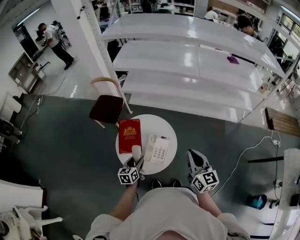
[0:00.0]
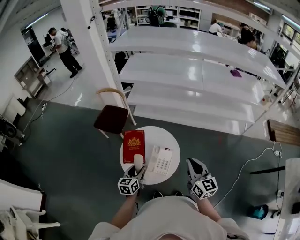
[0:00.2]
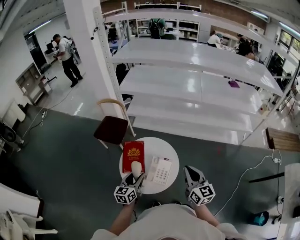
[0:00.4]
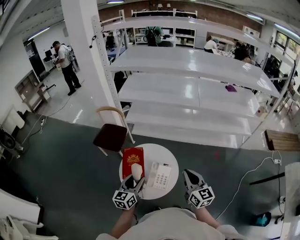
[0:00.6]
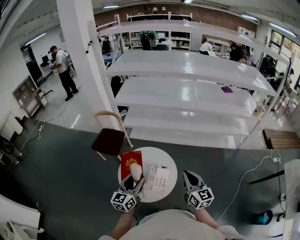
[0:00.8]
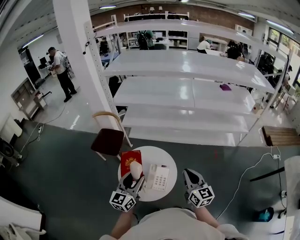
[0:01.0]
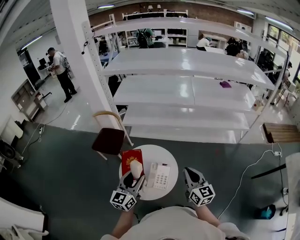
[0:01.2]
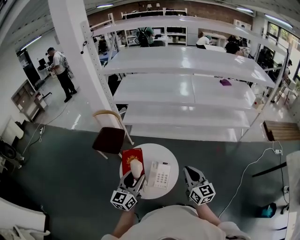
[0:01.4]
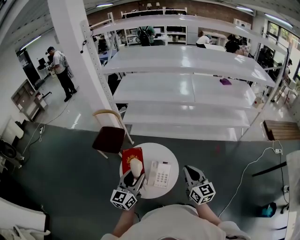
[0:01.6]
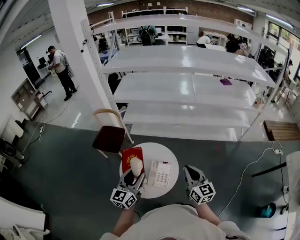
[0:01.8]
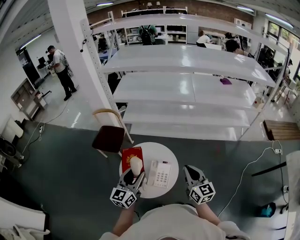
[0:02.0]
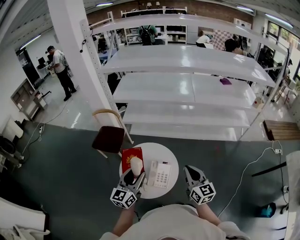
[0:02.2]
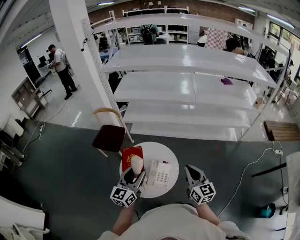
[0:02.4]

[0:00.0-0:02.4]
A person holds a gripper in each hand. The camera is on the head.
0:00.0 to 0:01.2: The left gripper shifts about 25 cm upward, and angles its fingers upward, by approximately 30 degrees.
0:01.2 to 0:02.4: The grippers move only a little.

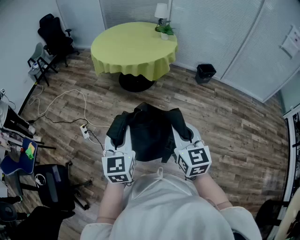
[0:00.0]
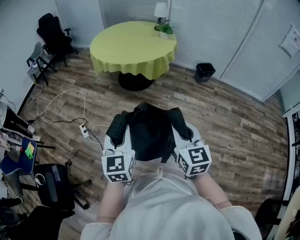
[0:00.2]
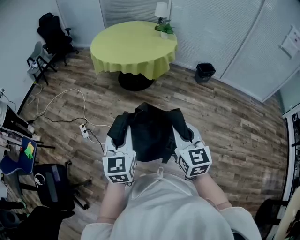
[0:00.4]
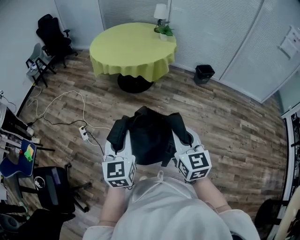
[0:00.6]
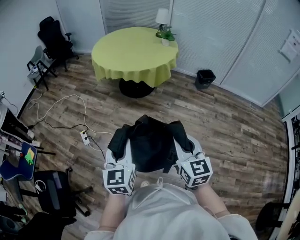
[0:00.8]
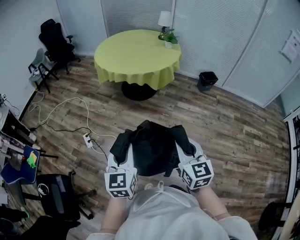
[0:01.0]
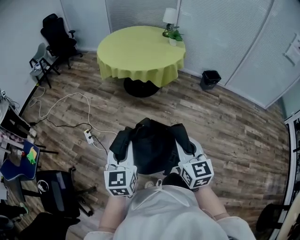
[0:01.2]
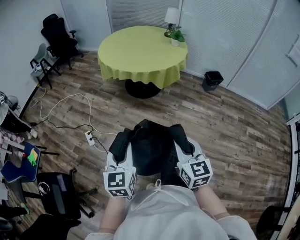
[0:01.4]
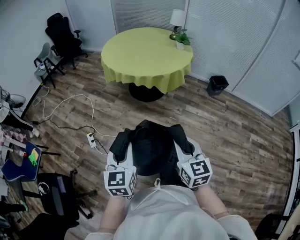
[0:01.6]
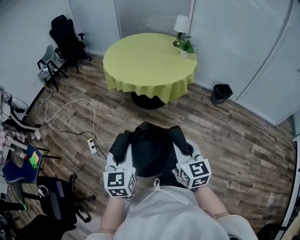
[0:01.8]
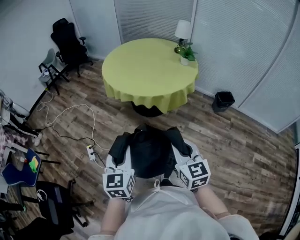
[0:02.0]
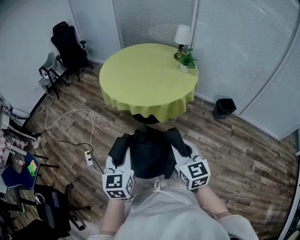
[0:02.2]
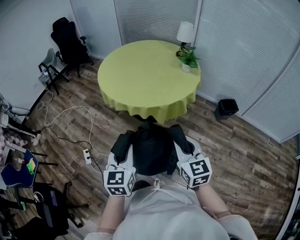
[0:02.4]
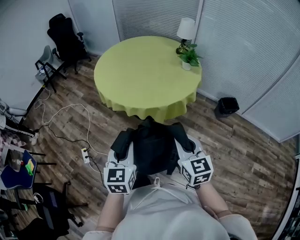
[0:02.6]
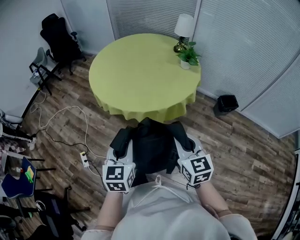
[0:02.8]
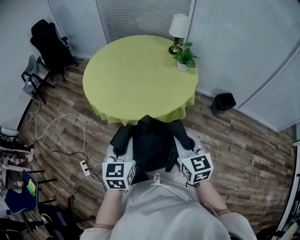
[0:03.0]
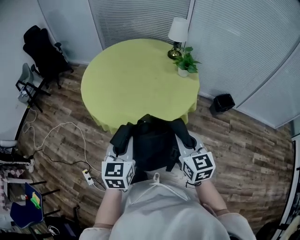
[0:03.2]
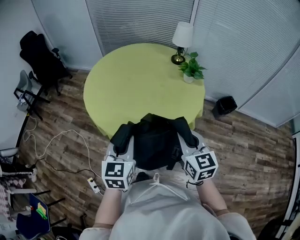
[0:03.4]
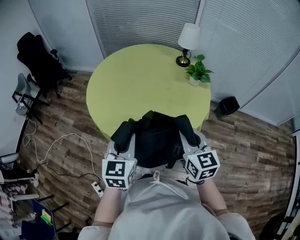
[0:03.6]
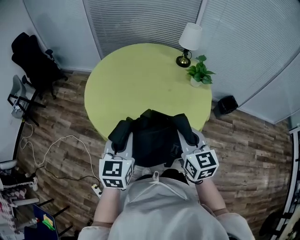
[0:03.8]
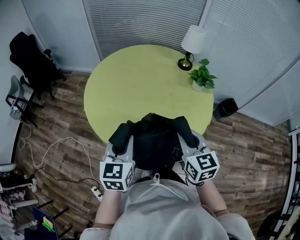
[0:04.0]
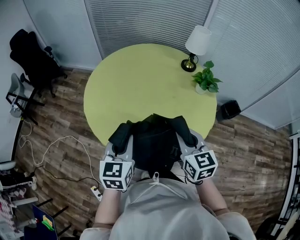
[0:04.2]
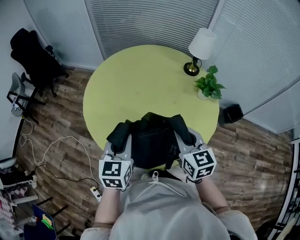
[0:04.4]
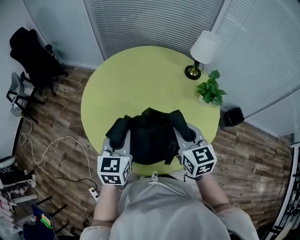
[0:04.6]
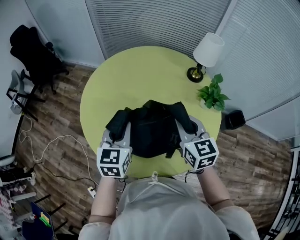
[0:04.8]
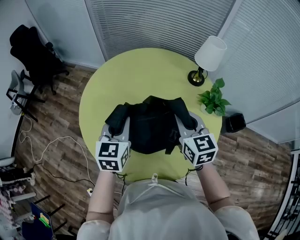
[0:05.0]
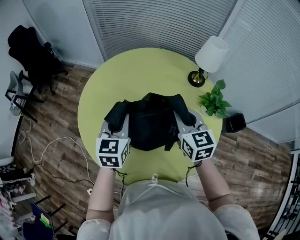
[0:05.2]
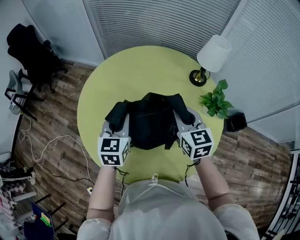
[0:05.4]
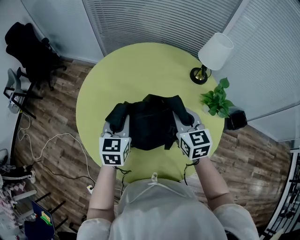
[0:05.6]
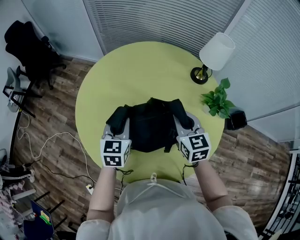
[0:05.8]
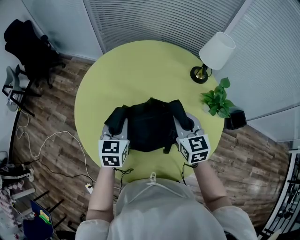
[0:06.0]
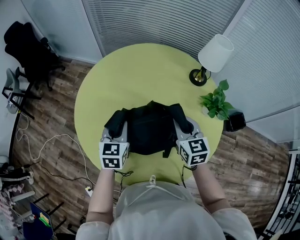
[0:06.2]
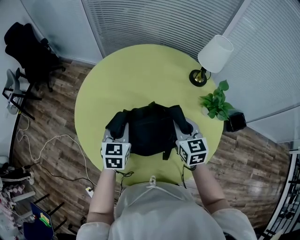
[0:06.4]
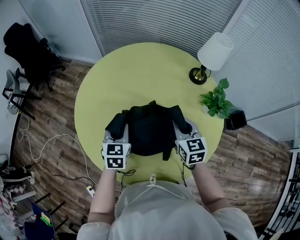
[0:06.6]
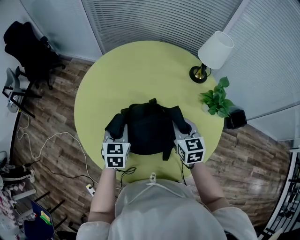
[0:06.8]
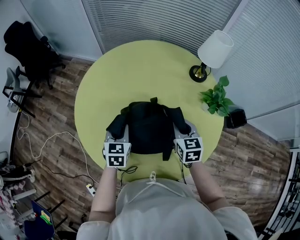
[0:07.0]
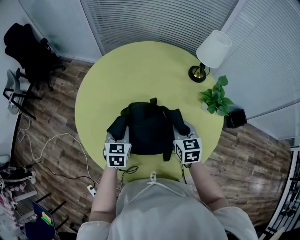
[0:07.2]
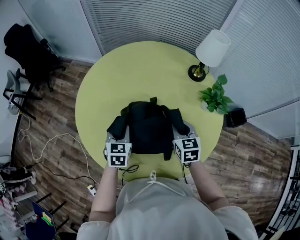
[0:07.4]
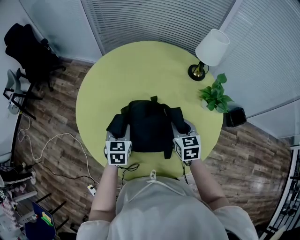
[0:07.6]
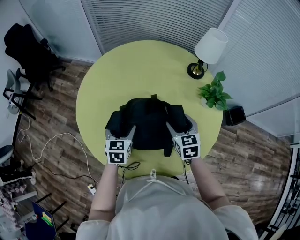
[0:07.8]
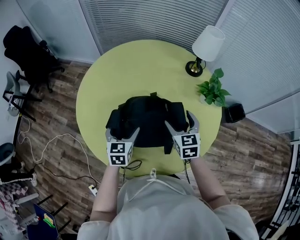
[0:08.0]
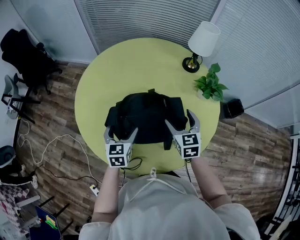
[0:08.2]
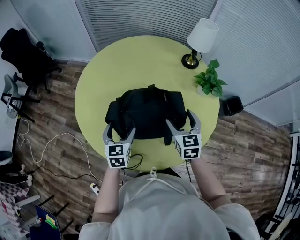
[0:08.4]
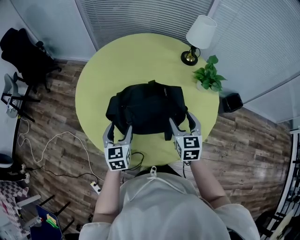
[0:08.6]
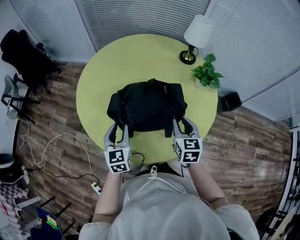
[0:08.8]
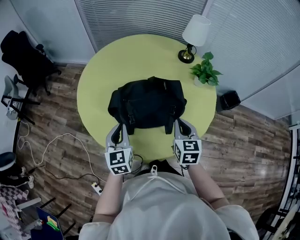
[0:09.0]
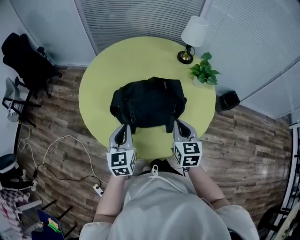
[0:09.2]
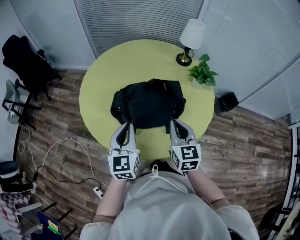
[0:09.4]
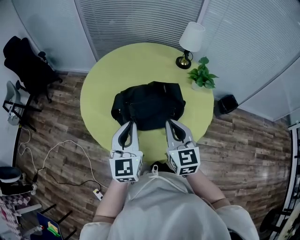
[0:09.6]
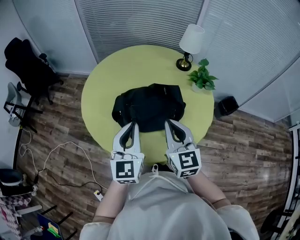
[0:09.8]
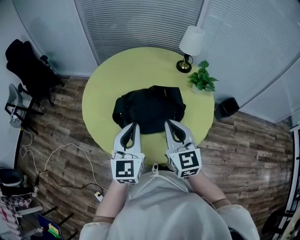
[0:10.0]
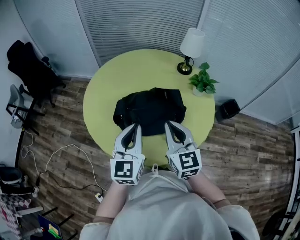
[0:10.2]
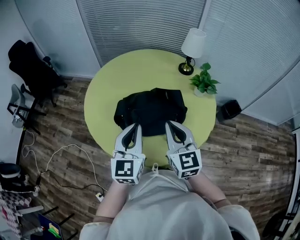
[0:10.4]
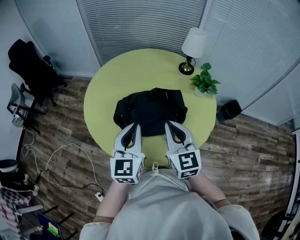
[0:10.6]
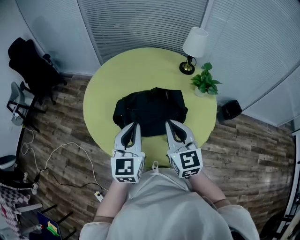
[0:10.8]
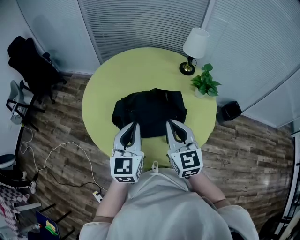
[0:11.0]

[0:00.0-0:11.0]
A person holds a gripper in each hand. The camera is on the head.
0:00.0 to 0:01.6: The two grippers go roughly 15 cm forward and to the left.
0:01.6 to 0:03.2: Both grippers are carried forward, some 50 cm.
0:03.2 to 0:04.8: The pair of grippers is taken forward, about 40 cm.
0:04.8 to 0:06.2: The left gripper goes roughly 15 cm downward and forward. Meanwhile the right gripper goes approximately 10 cm forward and downward.
0:06.2 to 0:07.8: The two grippers go roughly 5 cm downward. The left gripper opens up. Meanwhile the right gripper opens.
0:07.8 to 0:09.4: The grippers both shift backward and upward by some 20 cm. The right gripper closes up. The left gripper turns by about 20 degrees, and closes its fingers.
0:09.4 to 0:11.0: The right gripper shifts some 5 cm upward, while the left gripper ends up some 5 cm from where it was.

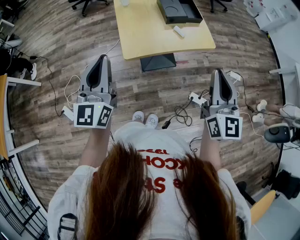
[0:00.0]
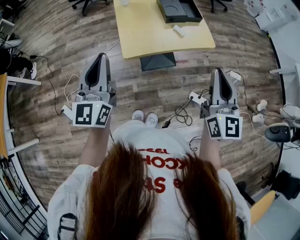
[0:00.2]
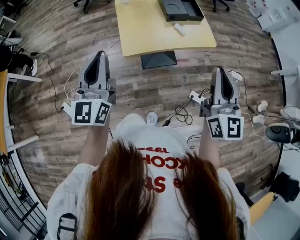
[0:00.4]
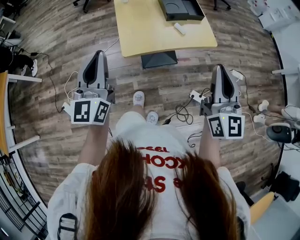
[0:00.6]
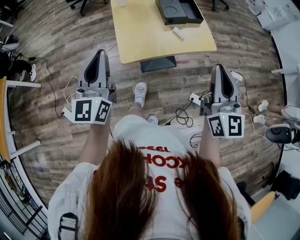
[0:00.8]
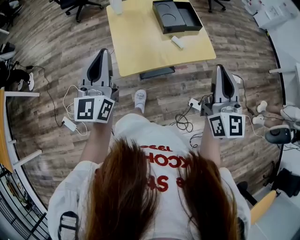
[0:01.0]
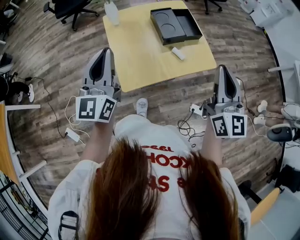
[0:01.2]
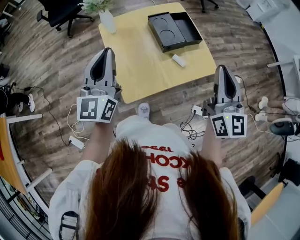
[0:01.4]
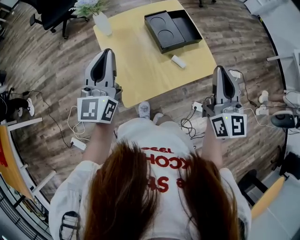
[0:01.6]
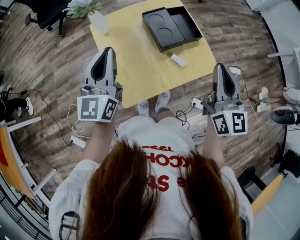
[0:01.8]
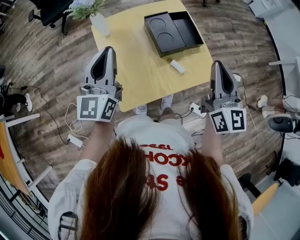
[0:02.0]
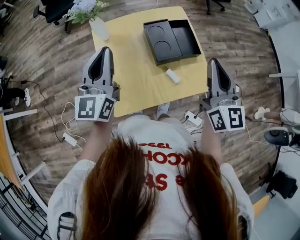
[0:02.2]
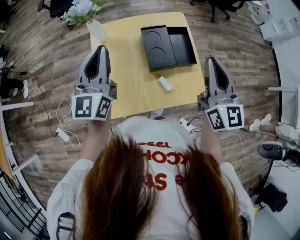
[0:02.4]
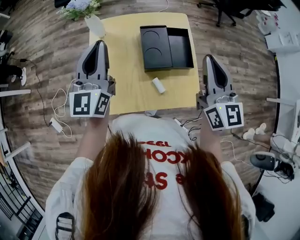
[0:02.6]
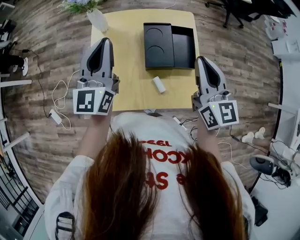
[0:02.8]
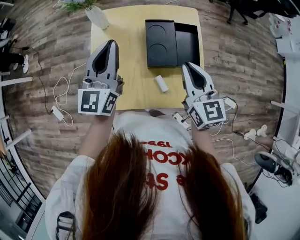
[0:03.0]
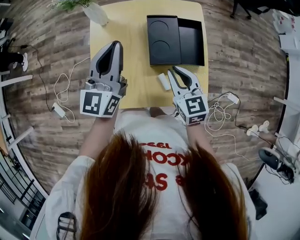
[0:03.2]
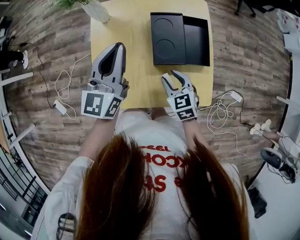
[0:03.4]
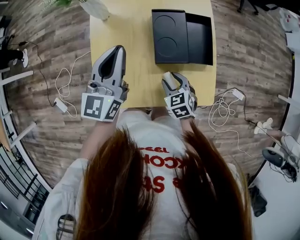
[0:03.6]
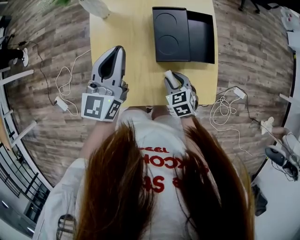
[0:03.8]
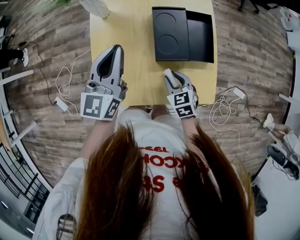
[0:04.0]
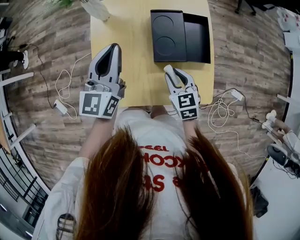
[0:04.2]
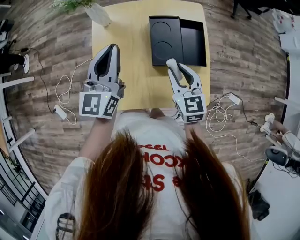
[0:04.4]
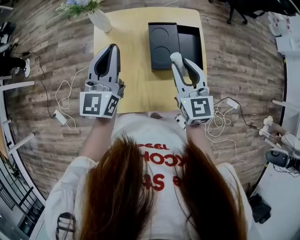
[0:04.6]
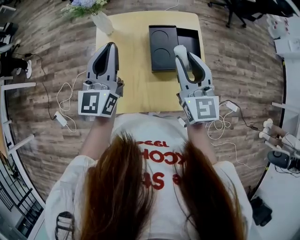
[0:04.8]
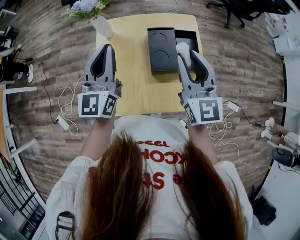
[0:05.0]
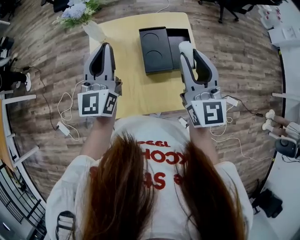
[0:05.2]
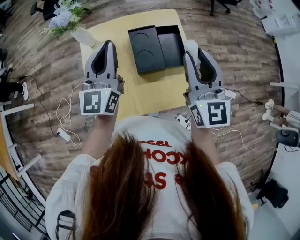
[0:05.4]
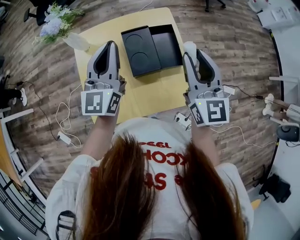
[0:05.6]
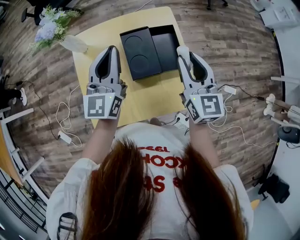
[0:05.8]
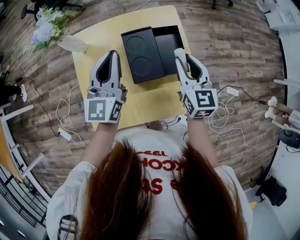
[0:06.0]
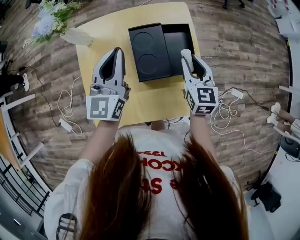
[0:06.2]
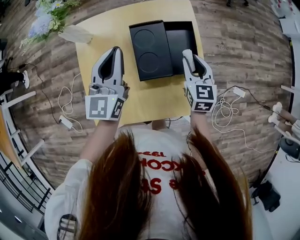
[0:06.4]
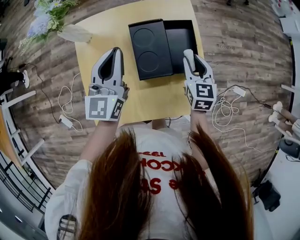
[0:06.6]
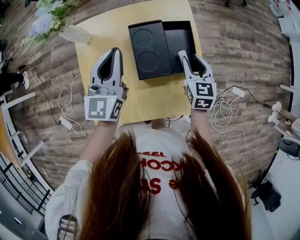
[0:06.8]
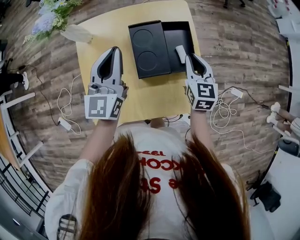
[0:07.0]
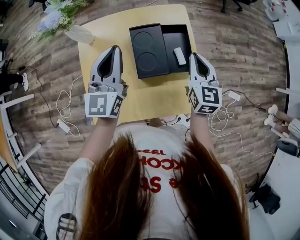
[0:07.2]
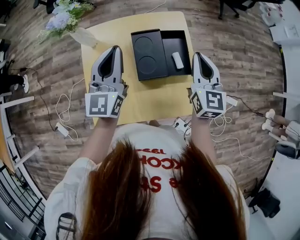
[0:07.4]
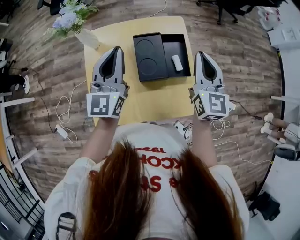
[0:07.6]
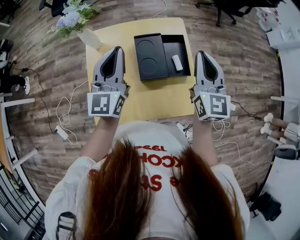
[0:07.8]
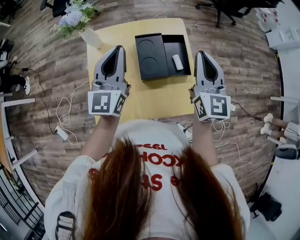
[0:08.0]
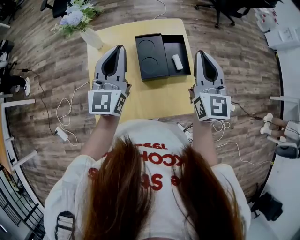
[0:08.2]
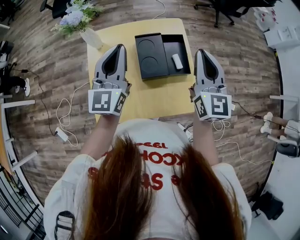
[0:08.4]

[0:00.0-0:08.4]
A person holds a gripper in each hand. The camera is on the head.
0:00.0 to 0:01.4: Both grippers move forward, roughly 20 cm.
0:01.4 to 0:02.8: The right gripper travels forward by roughly 20 cm, and rotates about 30 degrees. Meanwhile the left gripper heads forward and to the right, covering about 15 cm.
0:02.8 to 0:04.2: The right gripper goes roughly 25 cm downward and to the left, tilts its fingers roughly 30 degrees downward, and opens its fingers. Meanwhile the left gripper shifts some 10 cm downward.
0:04.2 to 0:05.6: The left gripper shifts approximately 10 cm to the right and upward; the right gripper travels upward and to the right by about 25 cm, and points its fingers about 30 degrees further upward.
0:05.6 to 0:07.0: The right gripper shifts some 20 cm downward, and rotates about 20 degrees; the left gripper shifts approximately 5 cm downward.
0:07.0 to 0:08.4: The right gripper heads upward, covering some 20 cm, and turns by about 30 degrees. Meanwhile the left gripper is displaced upward by some 10 cm.

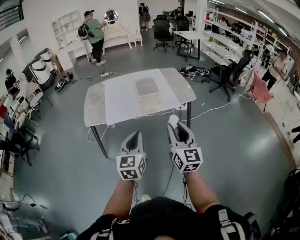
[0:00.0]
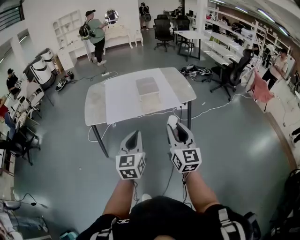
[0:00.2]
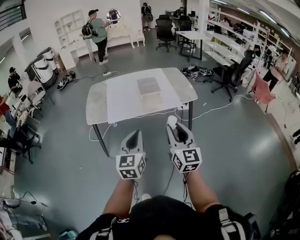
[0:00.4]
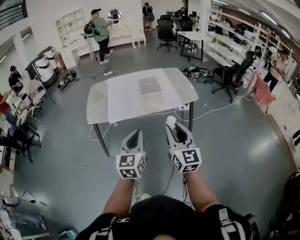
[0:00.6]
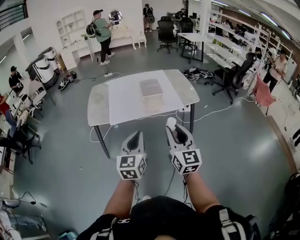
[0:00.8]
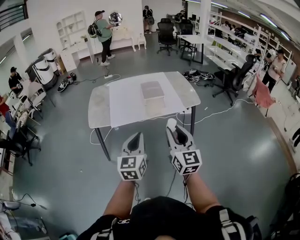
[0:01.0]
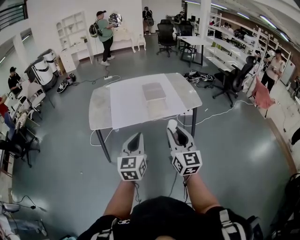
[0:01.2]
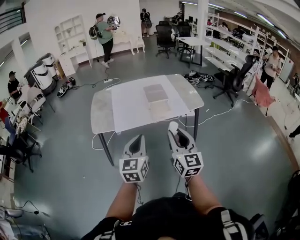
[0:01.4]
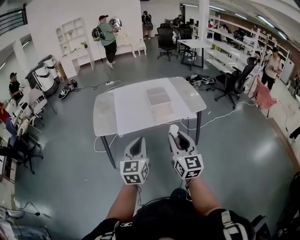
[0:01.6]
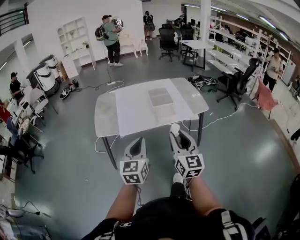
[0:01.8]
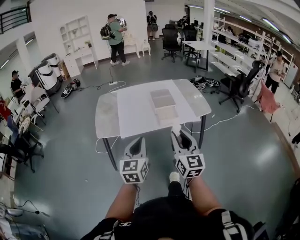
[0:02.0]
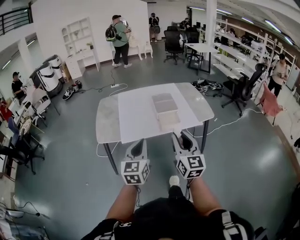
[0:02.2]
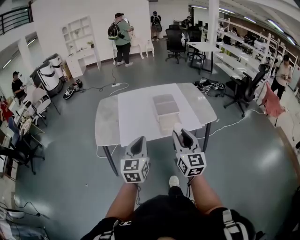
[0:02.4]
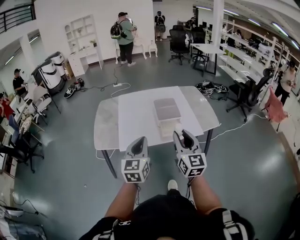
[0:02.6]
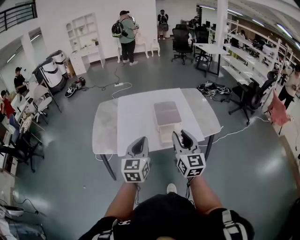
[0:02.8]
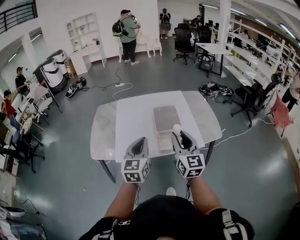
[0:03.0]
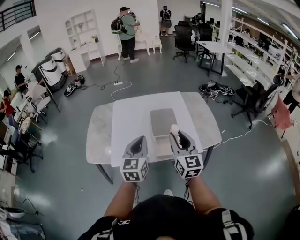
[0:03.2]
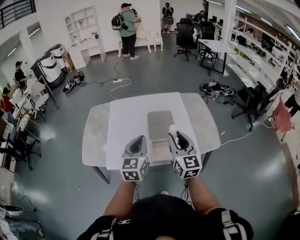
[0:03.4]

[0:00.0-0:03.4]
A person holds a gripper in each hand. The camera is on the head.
0:00.0 to 0:01.6: Both grippers travel together to the left, approximately 10 cm.
0:01.6 to 0:03.4: Both grippers are carried forward, approximately 50 cm.
